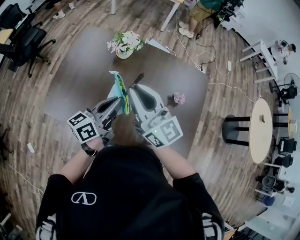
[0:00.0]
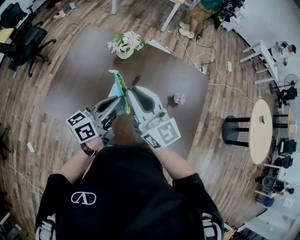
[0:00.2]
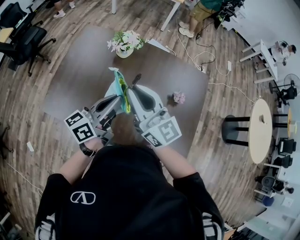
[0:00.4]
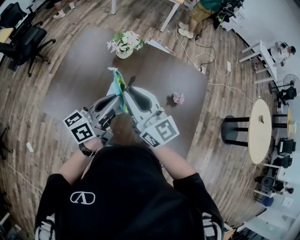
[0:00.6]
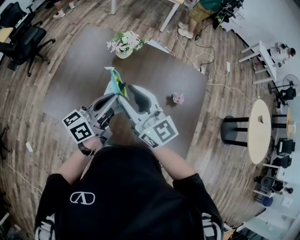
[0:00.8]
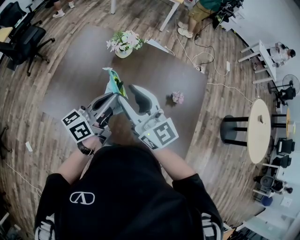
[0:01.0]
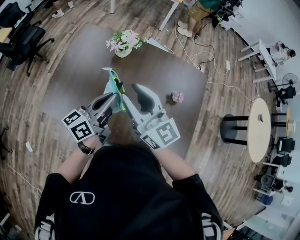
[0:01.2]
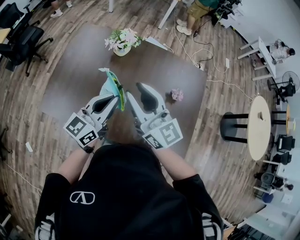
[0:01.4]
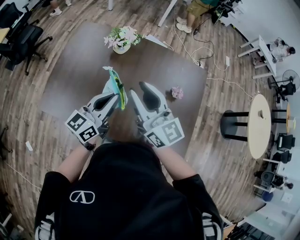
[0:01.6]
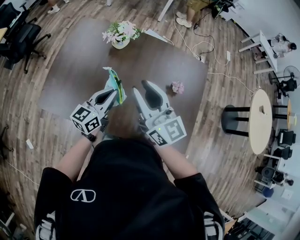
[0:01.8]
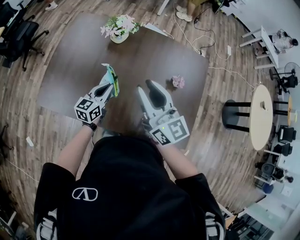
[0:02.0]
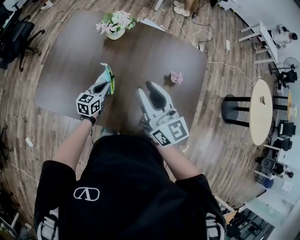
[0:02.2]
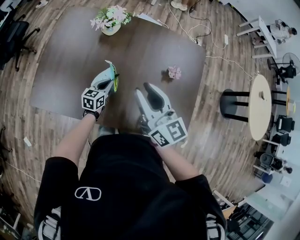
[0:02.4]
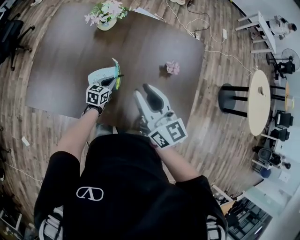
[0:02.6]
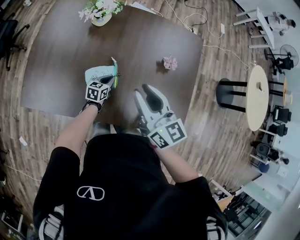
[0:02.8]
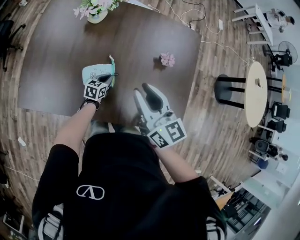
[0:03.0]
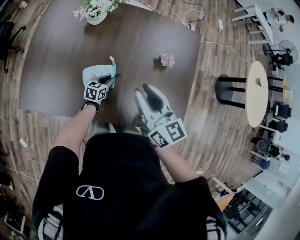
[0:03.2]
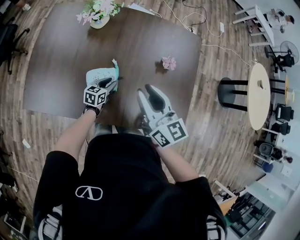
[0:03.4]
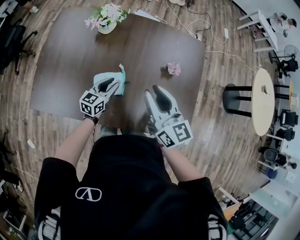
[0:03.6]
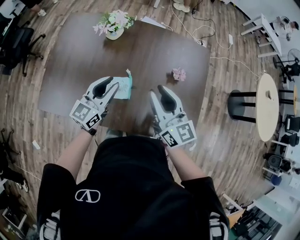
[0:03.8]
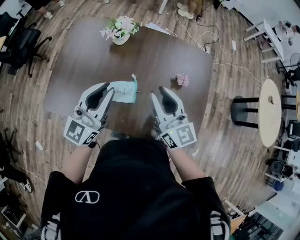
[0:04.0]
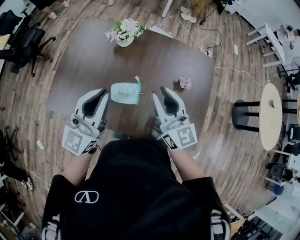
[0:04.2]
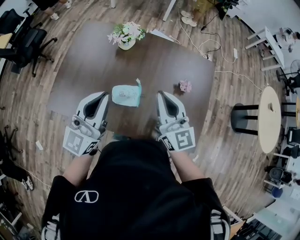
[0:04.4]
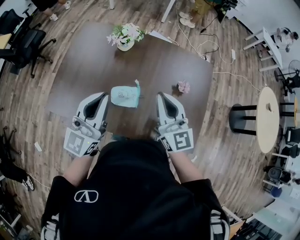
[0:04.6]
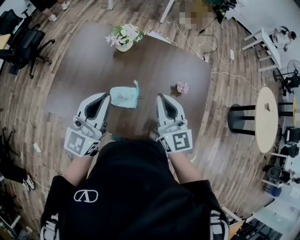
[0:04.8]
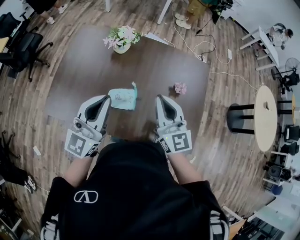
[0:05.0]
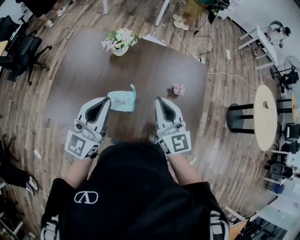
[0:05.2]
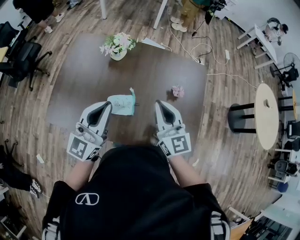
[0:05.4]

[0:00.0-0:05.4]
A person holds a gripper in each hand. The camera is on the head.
0:00.0 to 0:01.4: The left gripper turns by about 20 degrees.
0:01.4 to 0:02.8: The left gripper is displaced downward by about 40 cm, and points its fingers some 40 degrees further downward. Meanwhile the right gripper shifts approximately 15 cm downward and to the right, and rotates about 20 degrees.
0:02.8 to 0:04.0: The left gripper heads upward, covering approximately 40 cm, and tips its fingers upward by roughly 40 degrees. Meanwhile the right gripper travels upward by some 5 cm.
0:04.0 to 0:05.4: The grippers stay close to where they were, moving slightly.

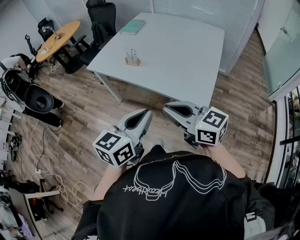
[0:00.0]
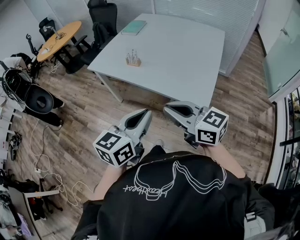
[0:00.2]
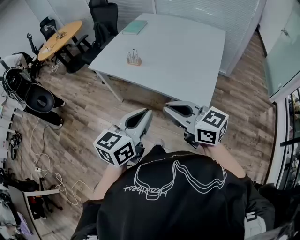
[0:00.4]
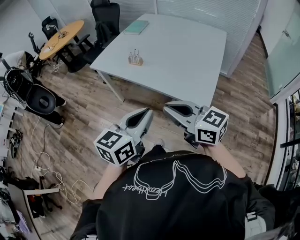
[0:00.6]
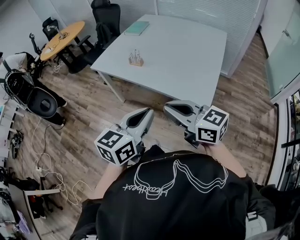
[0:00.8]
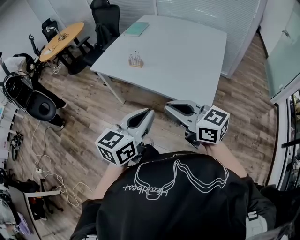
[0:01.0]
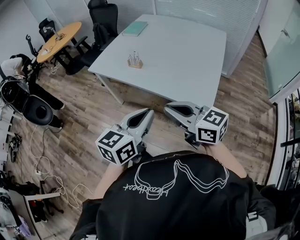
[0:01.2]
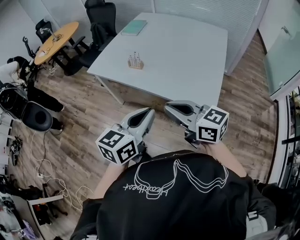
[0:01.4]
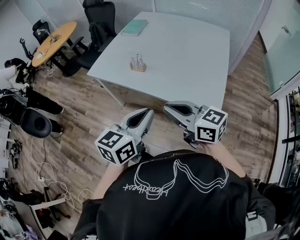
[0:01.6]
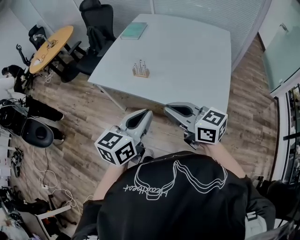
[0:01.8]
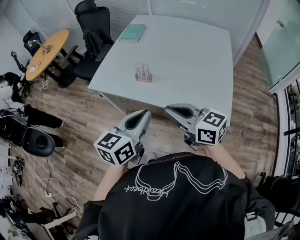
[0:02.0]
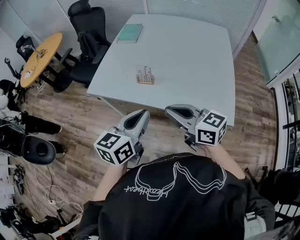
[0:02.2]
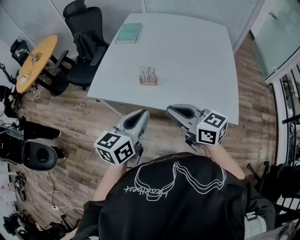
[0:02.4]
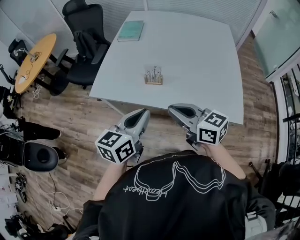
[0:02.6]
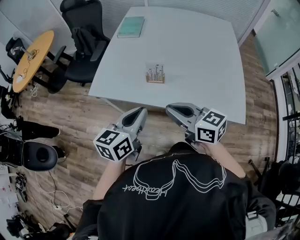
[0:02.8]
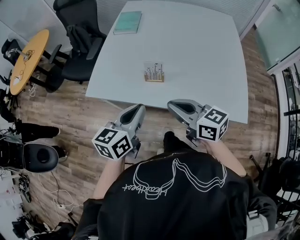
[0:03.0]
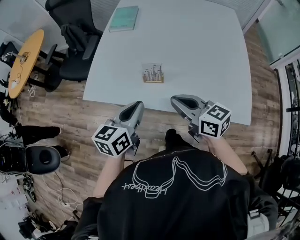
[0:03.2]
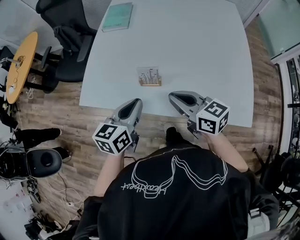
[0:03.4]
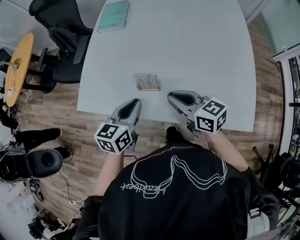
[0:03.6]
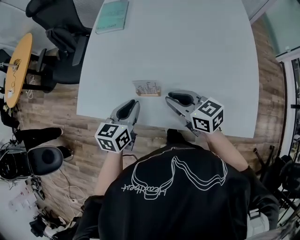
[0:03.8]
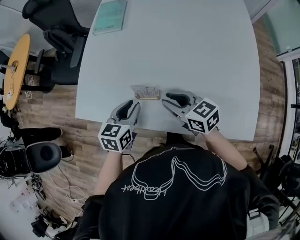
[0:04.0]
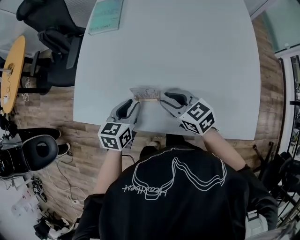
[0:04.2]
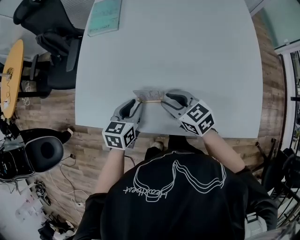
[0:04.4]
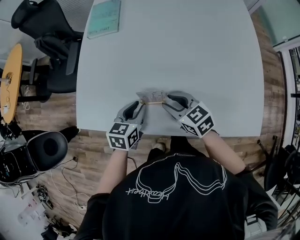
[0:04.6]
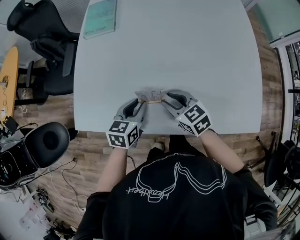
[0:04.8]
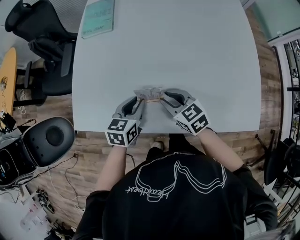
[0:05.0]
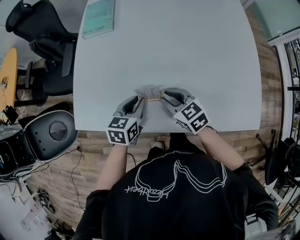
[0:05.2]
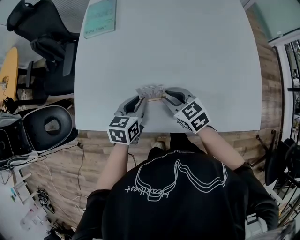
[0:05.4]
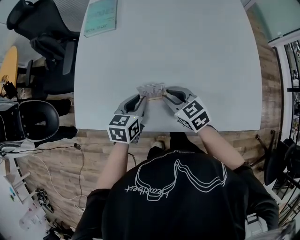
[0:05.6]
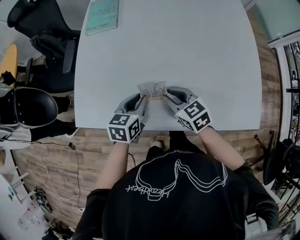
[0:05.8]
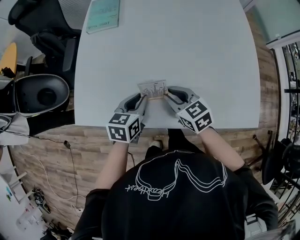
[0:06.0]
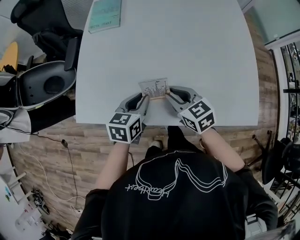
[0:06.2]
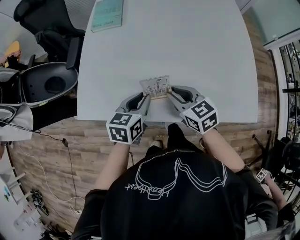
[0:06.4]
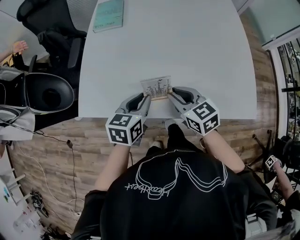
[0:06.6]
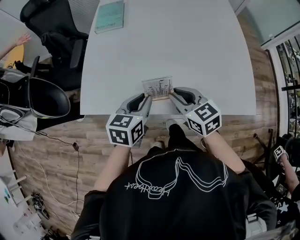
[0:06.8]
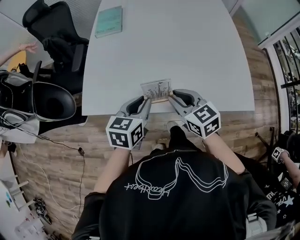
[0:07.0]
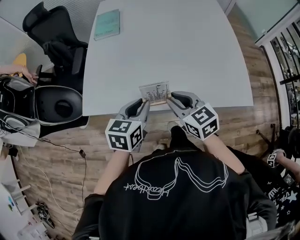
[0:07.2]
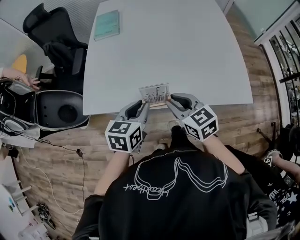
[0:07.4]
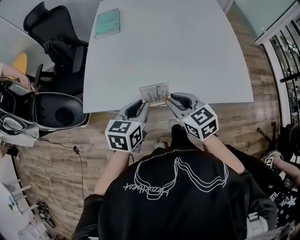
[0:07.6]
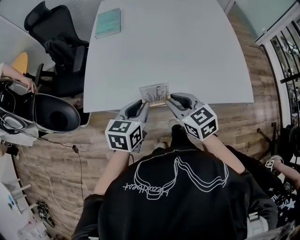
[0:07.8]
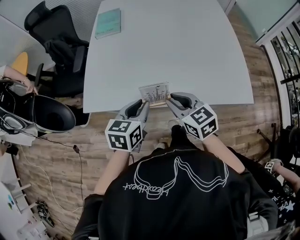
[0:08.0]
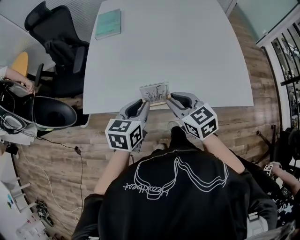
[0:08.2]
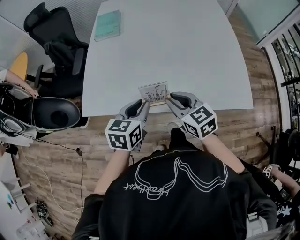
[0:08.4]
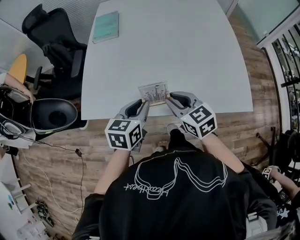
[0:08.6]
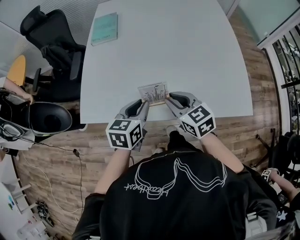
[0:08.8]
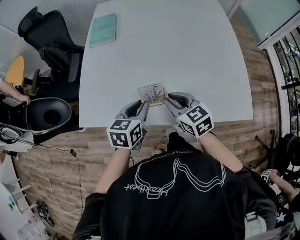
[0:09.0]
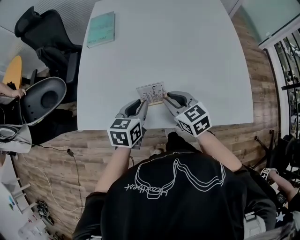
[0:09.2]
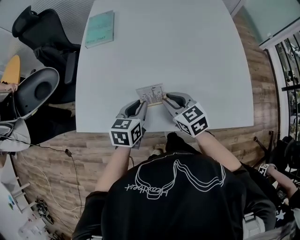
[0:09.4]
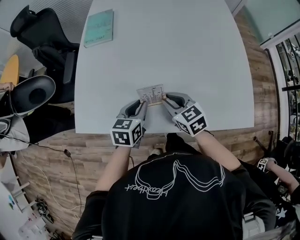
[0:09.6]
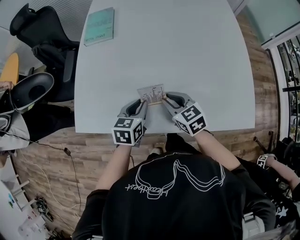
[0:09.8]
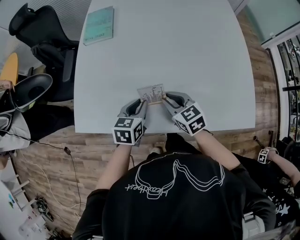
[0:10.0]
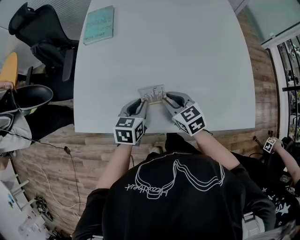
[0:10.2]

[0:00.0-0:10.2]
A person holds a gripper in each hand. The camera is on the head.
0:00.0 to 0:01.4: The grippers both shift forward by roughly 5 cm.
0:01.4 to 0:03.0: The grippers both shift forward and to the left by some 35 cm. The right gripper turns by roughly 20 degrees.
0:03.0 to 0:04.4: Both grippers move forward and downward, approximately 25 cm. The right gripper opens up. The left gripper rotates about 20 degrees, and opens up.
0:04.4 to 0:05.8: The grippers stay close to where they were, moving slightly.
0:05.8 to 0:07.2: Both grippers travel together backward and upward, some 20 cm.
0:07.2 to 0:08.8: The left gripper changes place by approximately 5 cm, while the right gripper shifts approximately 5 cm forward.
0:08.8 to 0:10.2: The two grippers go about 15 cm downward and forward.

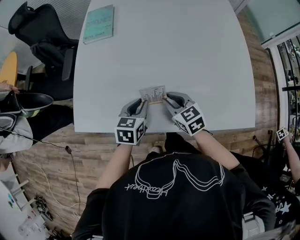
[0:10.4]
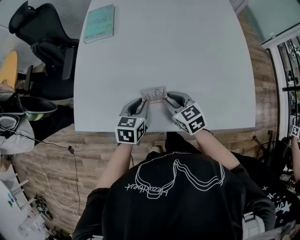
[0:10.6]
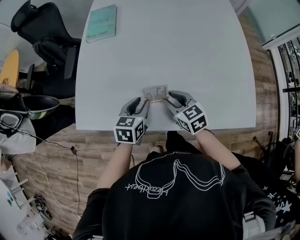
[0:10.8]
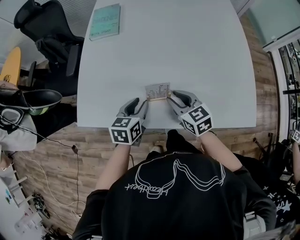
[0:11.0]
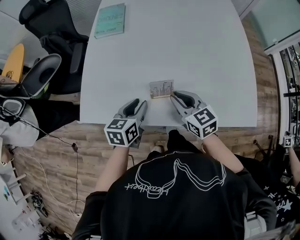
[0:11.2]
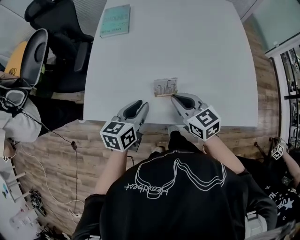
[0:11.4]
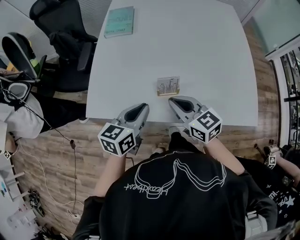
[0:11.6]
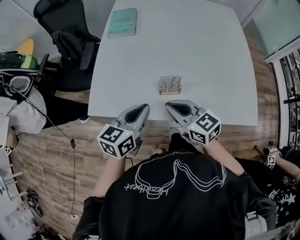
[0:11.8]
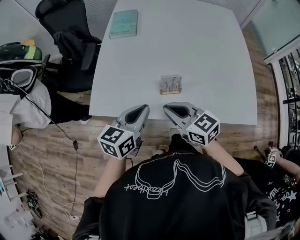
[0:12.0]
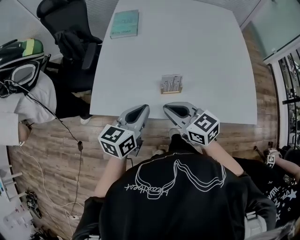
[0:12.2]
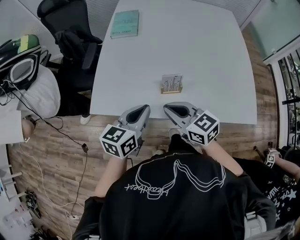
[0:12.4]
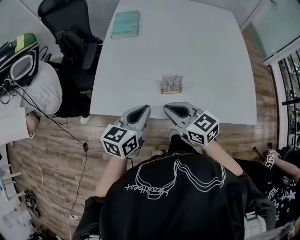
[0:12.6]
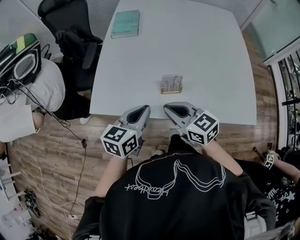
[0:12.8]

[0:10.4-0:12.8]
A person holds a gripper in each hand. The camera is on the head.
0:10.4 to 0:11.6: Both grippers move upward, backward and to the left, about 15 cm.
0:11.6 to 0:12.8: The right gripper changes place by roughly 5 cm.

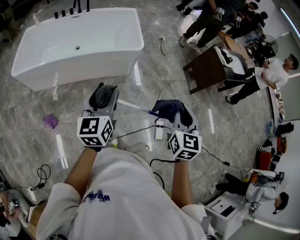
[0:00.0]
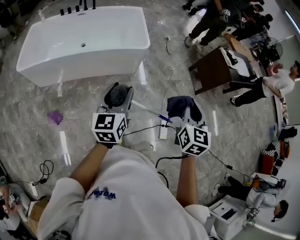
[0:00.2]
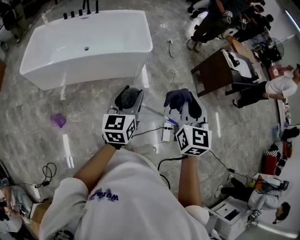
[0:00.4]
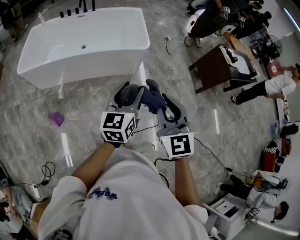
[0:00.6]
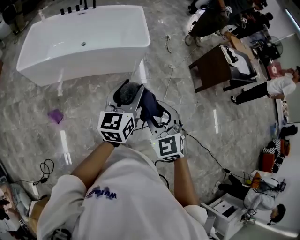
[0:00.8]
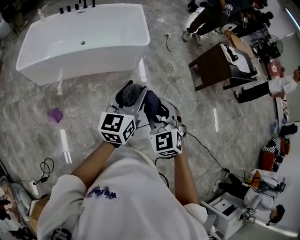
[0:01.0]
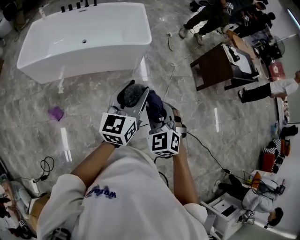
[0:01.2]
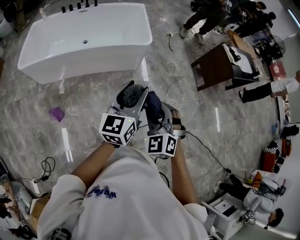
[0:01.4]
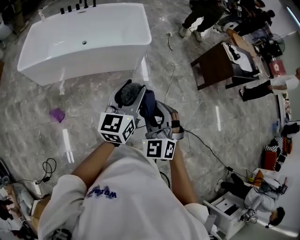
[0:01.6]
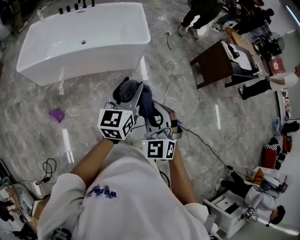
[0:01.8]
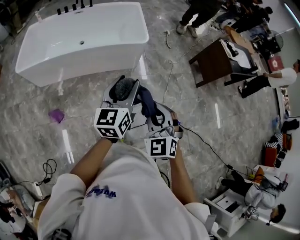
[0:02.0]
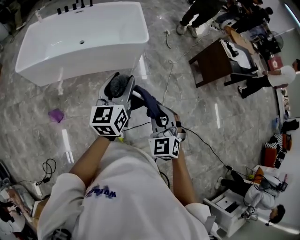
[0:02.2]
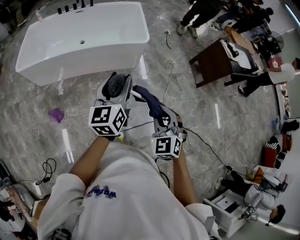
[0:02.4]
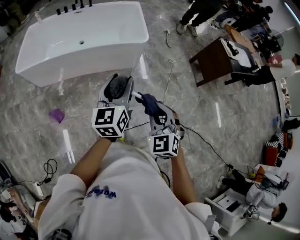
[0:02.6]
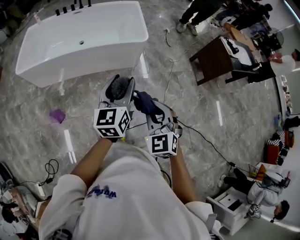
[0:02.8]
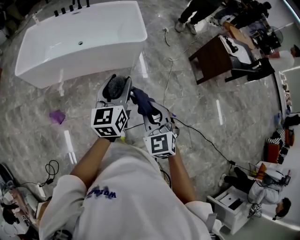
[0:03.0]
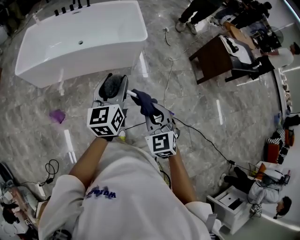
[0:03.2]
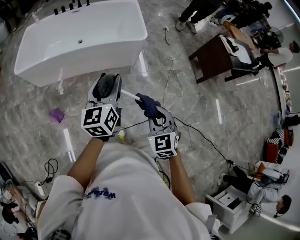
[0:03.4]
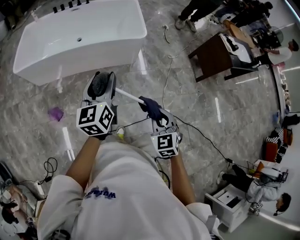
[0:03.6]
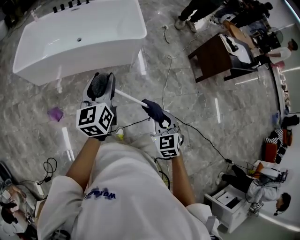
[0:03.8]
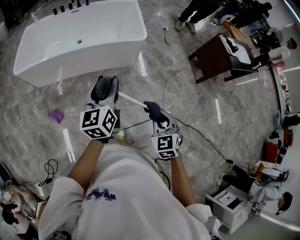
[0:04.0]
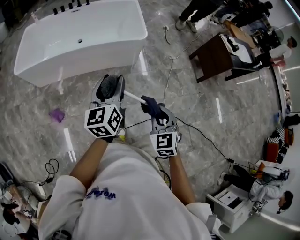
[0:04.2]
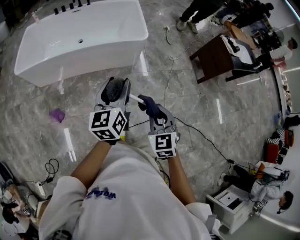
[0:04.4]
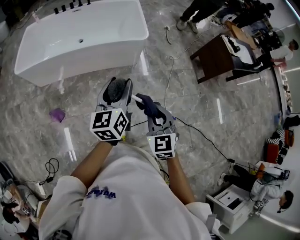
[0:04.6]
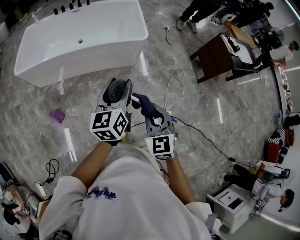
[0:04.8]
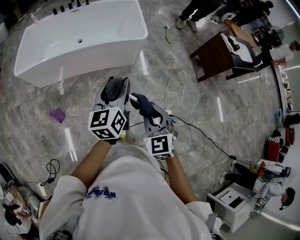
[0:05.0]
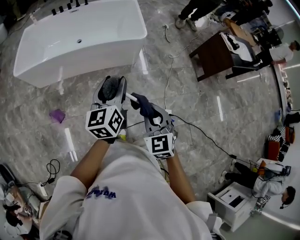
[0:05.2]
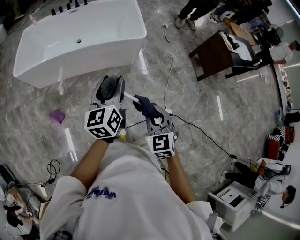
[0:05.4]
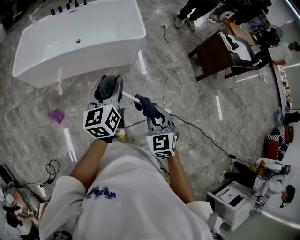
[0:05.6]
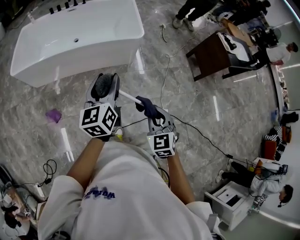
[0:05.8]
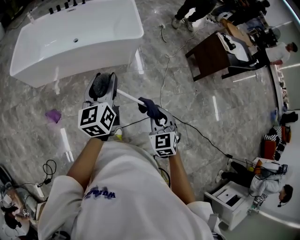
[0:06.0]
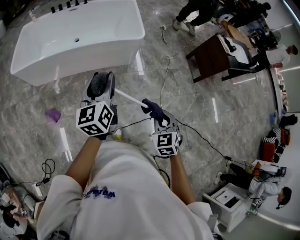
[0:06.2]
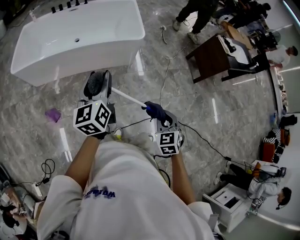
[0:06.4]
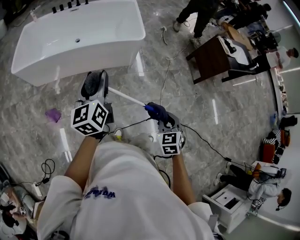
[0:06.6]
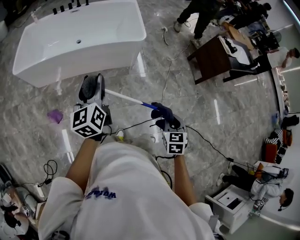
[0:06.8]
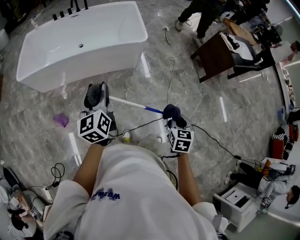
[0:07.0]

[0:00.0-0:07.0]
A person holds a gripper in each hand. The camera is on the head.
0:00.0 to 0:01.4: The right gripper moves to the left, some 15 cm, rotates around the line of its fingers by about 50 degrees, counterclockwise from behind, and opens its fingers, while the left gripper is displaced to the right by approximately 10 cm.
0:02.8 to 0:04.2: The right gripper goes roughly 5 cm downward.
0:04.2 to 0:05.6: The grippers move only a little.
0:05.6 to 0:07.0: The right gripper is displaced to the right and downward by approximately 15 cm, and rotates roughly 40 degrees. The left gripper travels to the left by roughly 5 cm.
